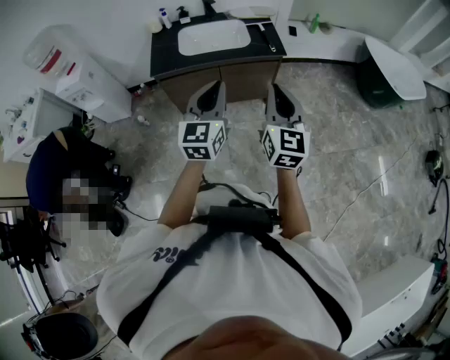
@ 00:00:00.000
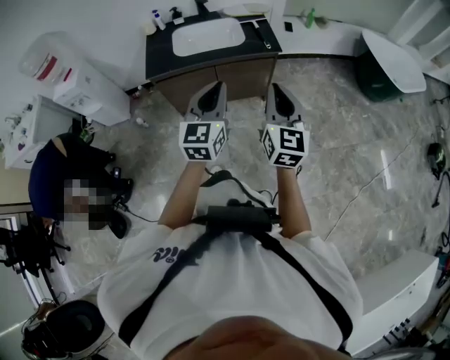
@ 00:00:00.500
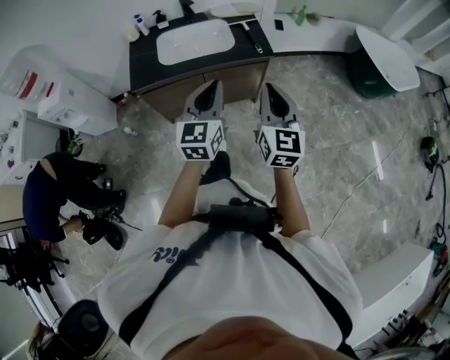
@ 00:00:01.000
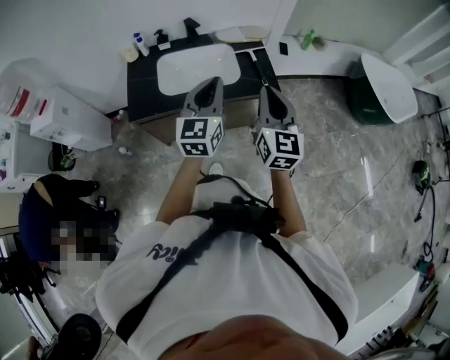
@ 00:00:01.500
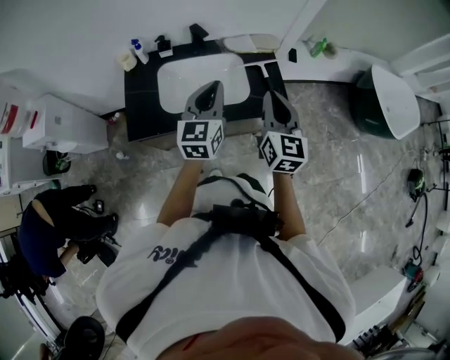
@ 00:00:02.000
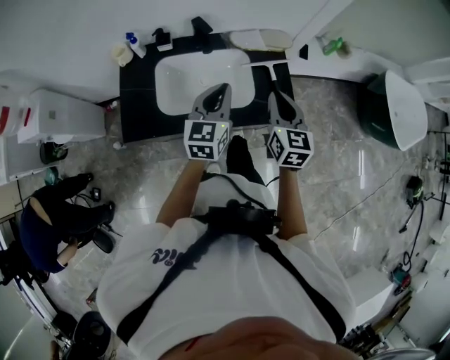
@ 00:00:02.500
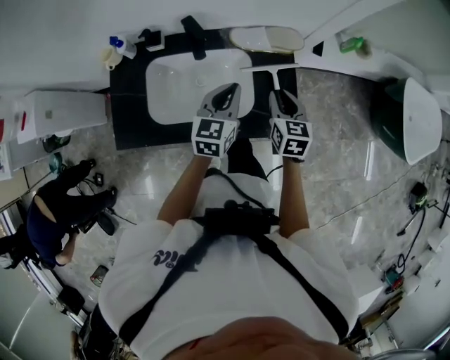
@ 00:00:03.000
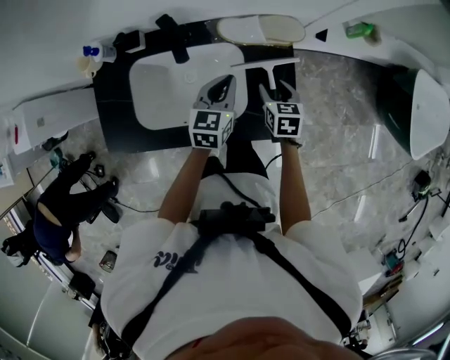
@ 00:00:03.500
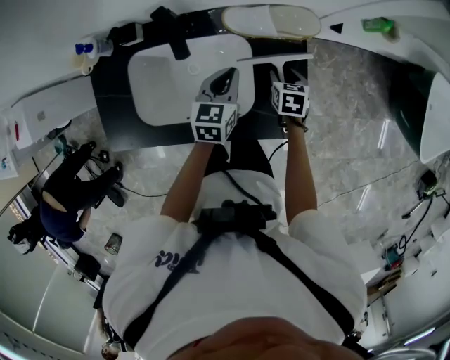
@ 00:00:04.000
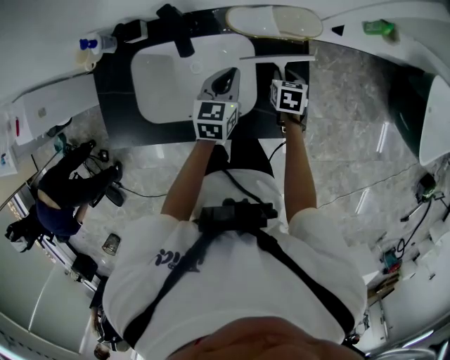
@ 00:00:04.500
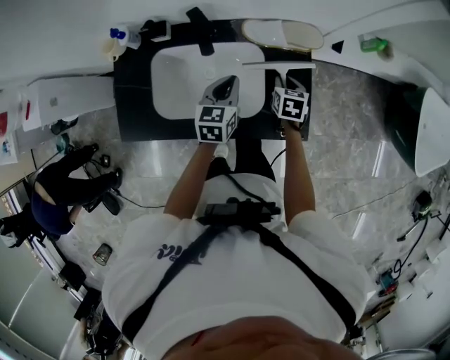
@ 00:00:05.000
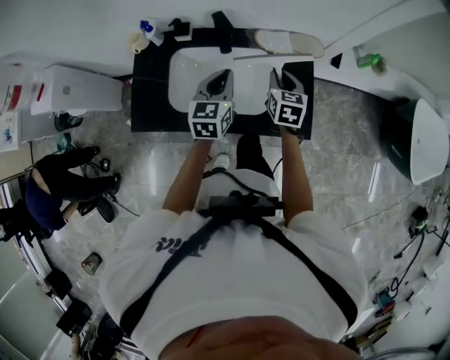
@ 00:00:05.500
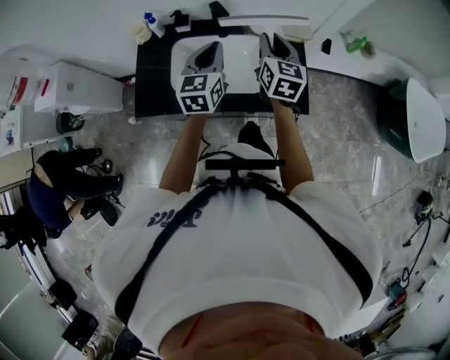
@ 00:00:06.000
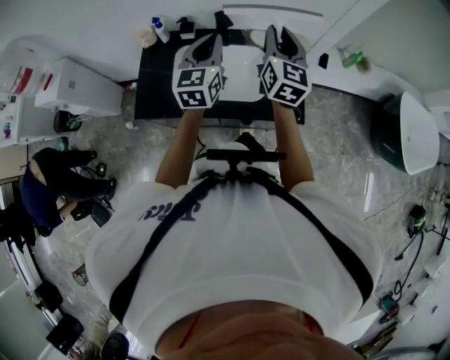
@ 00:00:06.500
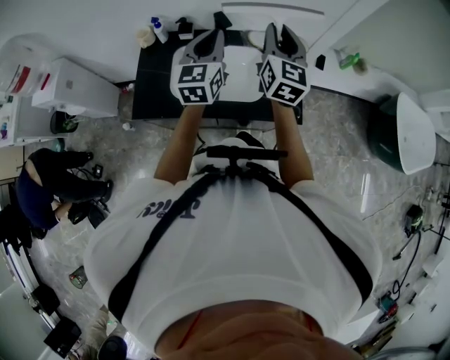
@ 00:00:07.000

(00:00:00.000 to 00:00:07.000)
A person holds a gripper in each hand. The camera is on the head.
00:00:00.000 - 00:00:02.000: The two grippers travel together, forward, approximately 40 cm.
00:00:02.000 - 00:00:03.500: The right gripper goes approximately 40 cm downward and forward, angles its fingers downward, by approximately 40 degrees, and opens. The left gripper travels forward and downward by roughly 35 cm, and swivels some 30 degrees.
00:00:03.500 - 00:00:05.000: The right gripper travels downward and back again, some 10 cm each way, and closes up, while the left gripper moves some 5 cm.
00:00:05.000 - 00:00:07.000: The left gripper shifts some 25 cm upward, and changes its angle by some 30 degrees; the right gripper moves upward, approximately 40 cm, and angles its fingers upward, by approximately 50 degrees.

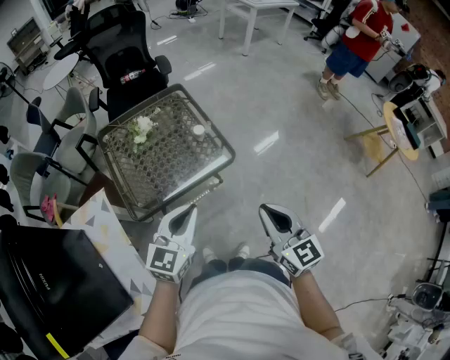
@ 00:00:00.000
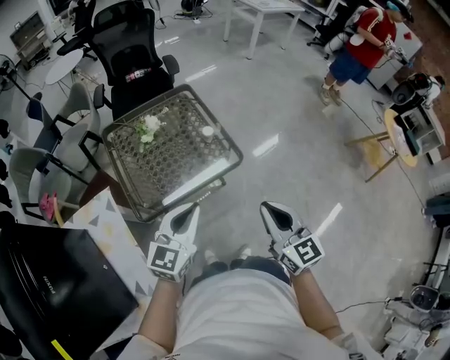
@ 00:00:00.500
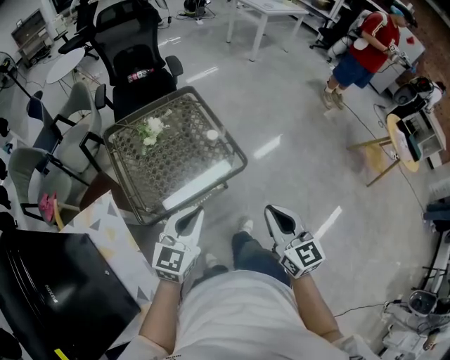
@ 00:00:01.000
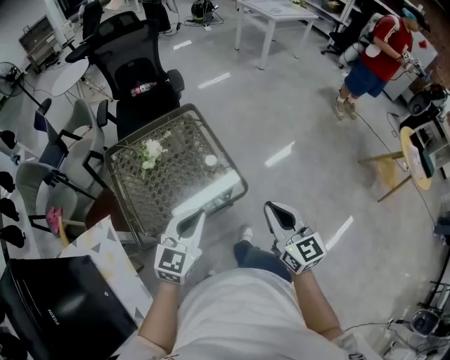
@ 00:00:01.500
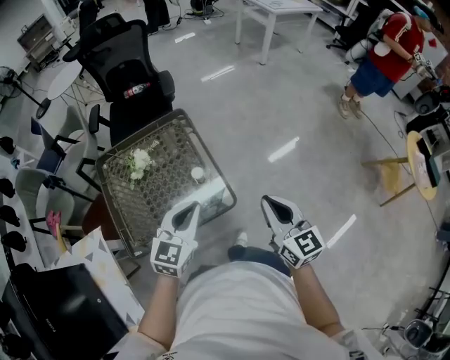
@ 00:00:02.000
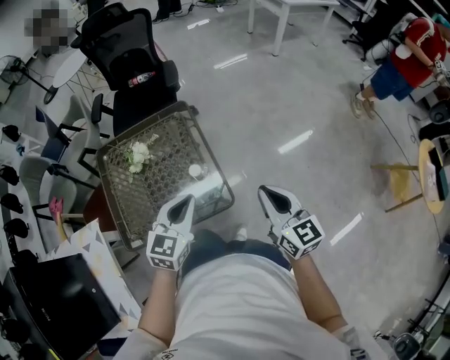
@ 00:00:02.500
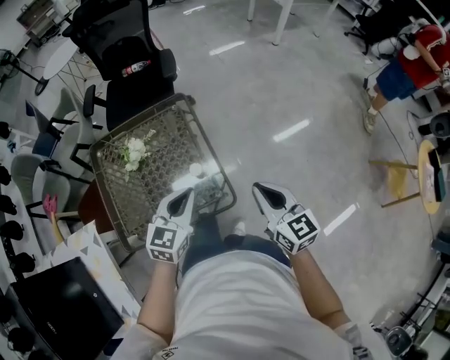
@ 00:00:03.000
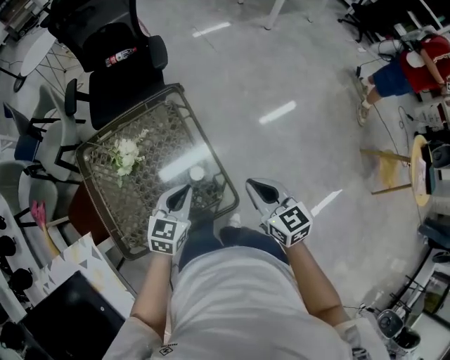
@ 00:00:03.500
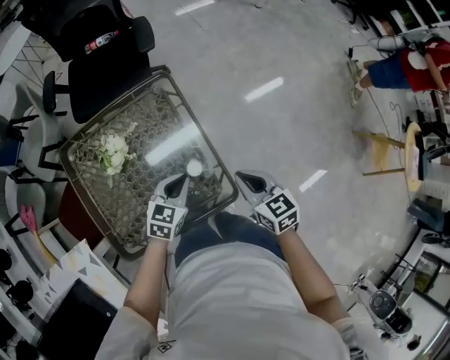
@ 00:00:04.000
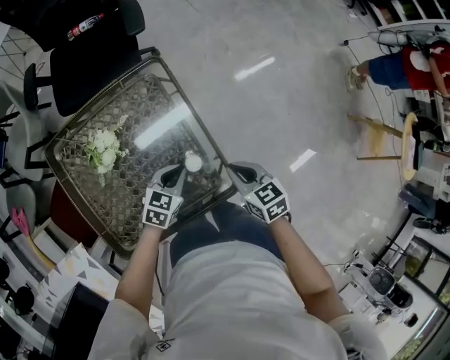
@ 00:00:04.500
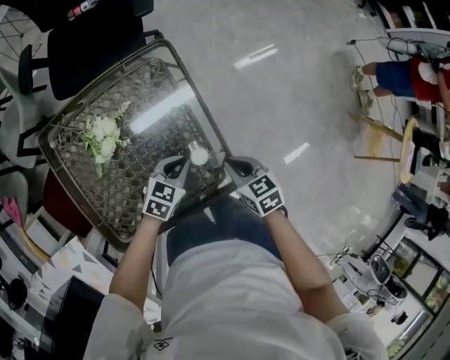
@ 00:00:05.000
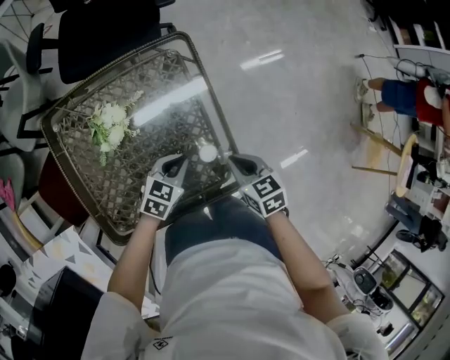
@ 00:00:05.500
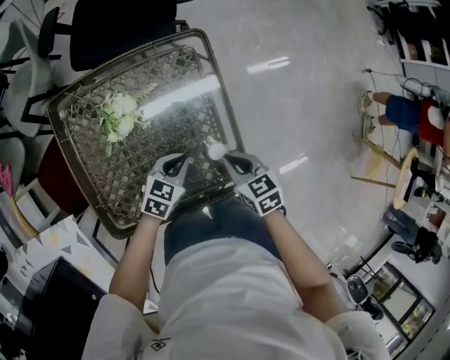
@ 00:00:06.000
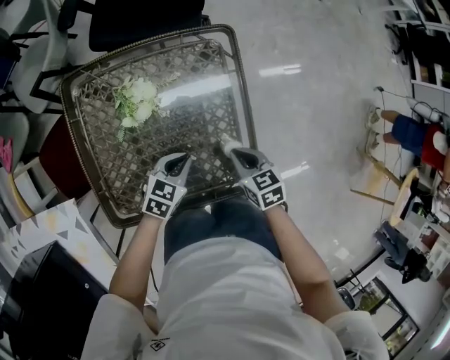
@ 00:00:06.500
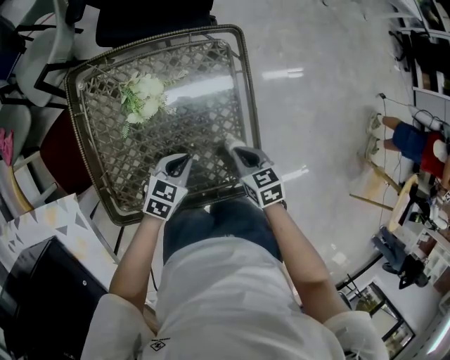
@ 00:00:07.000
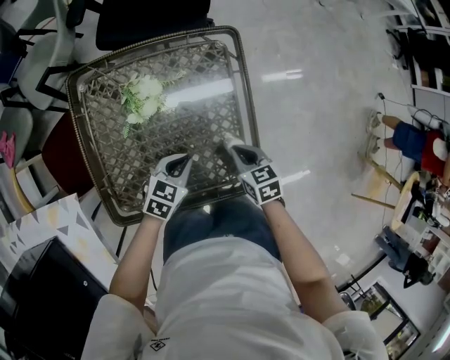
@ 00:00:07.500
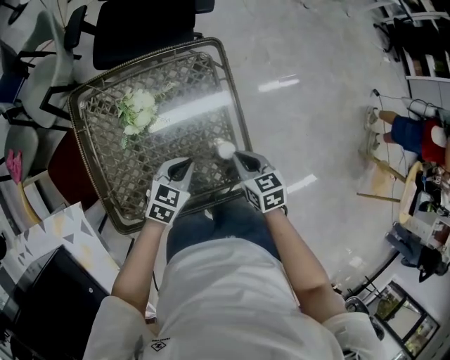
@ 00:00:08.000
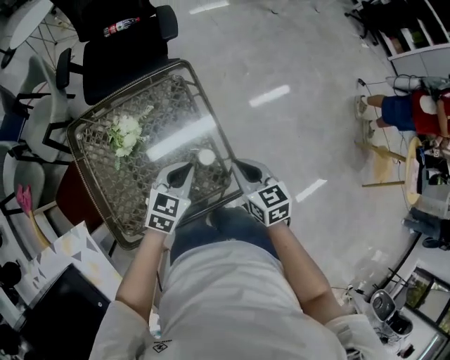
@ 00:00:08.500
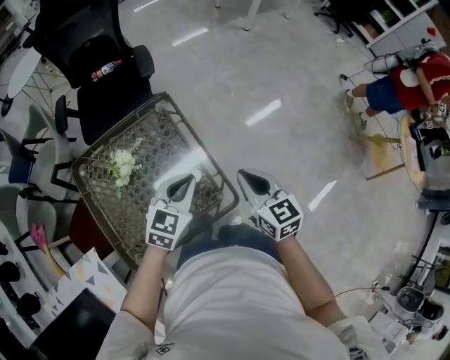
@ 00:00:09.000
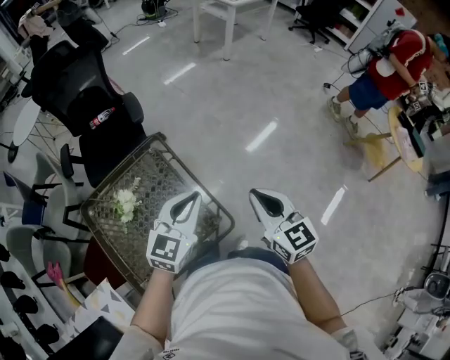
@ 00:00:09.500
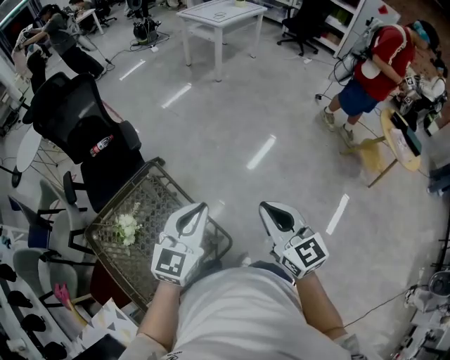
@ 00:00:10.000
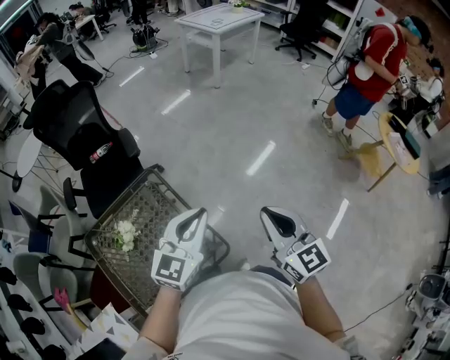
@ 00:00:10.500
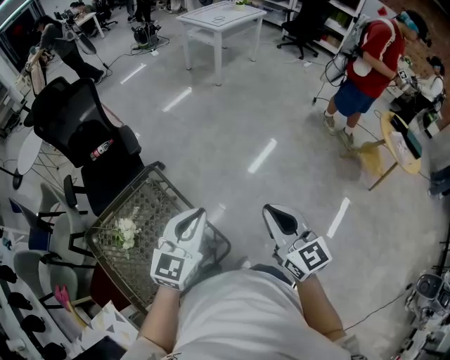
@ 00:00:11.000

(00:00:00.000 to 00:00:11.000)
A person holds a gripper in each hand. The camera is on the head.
00:00:00.000 - 00:00:02.000: The grippers both shift forward by roughly 25 cm.
00:00:02.000 - 00:00:03.500: The grippers both shift forward and downward by approximately 20 cm.
00:00:03.500 - 00:00:05.500: The right gripper goes roughly 20 cm downward and to the left, and turns by about 30 degrees. The left gripper heads downward, covering approximately 15 cm.
00:00:05.500 - 00:00:07.500: The two grippers go roughly 5 cm to the left.
00:00:07.500 - 00:00:09.000: Both grippers travel together upward and to the right, some 25 cm. The right gripper rotates about 40 degrees, while the left gripper turns by some 30 degrees.
00:00:09.000 - 00:00:11.000: The grippers both shift upward and to the right by about 20 cm. The left gripper swivels roughly 20 degrees; the right gripper rotates approximately 20 degrees.

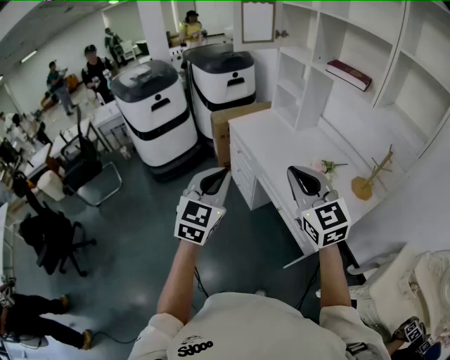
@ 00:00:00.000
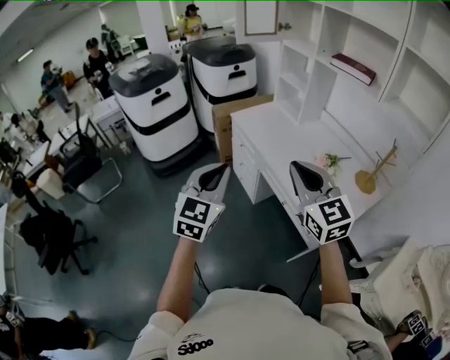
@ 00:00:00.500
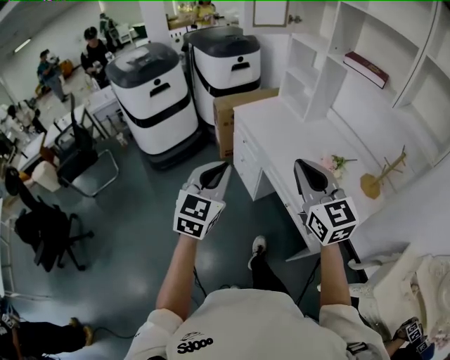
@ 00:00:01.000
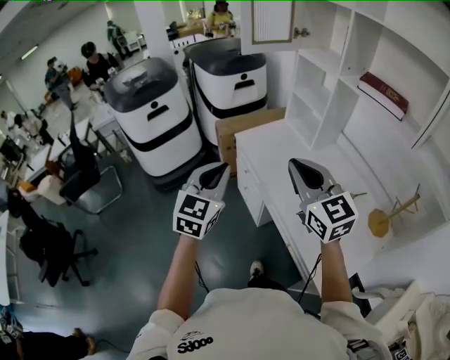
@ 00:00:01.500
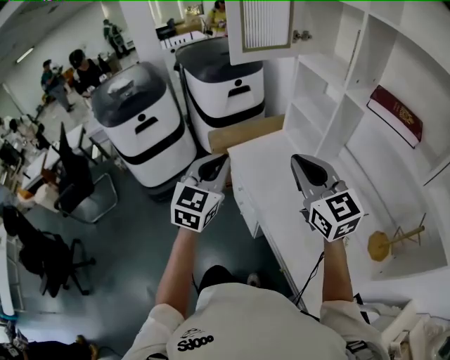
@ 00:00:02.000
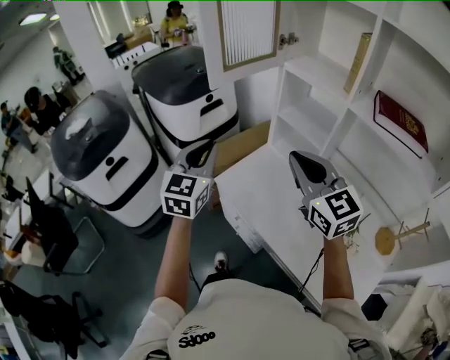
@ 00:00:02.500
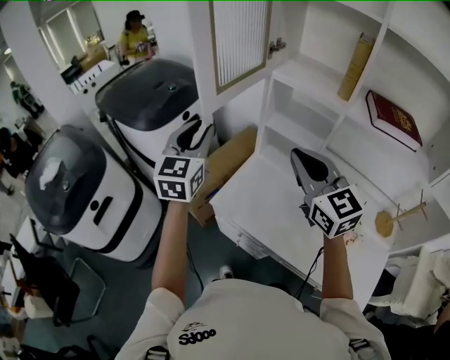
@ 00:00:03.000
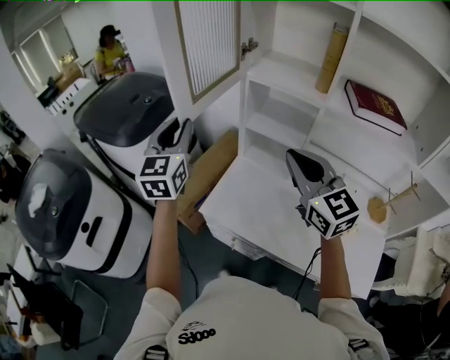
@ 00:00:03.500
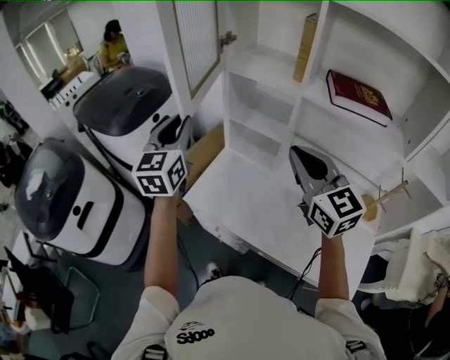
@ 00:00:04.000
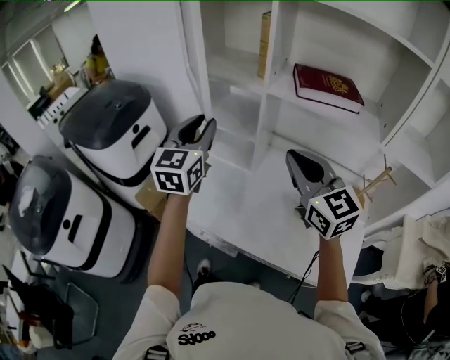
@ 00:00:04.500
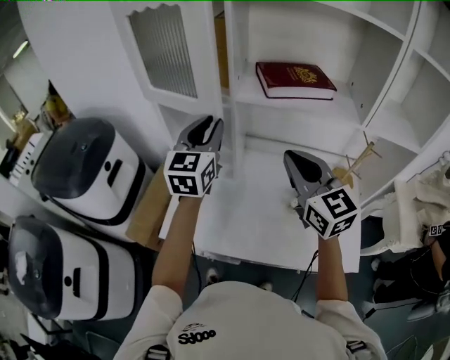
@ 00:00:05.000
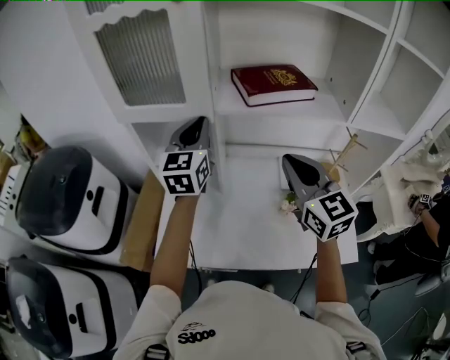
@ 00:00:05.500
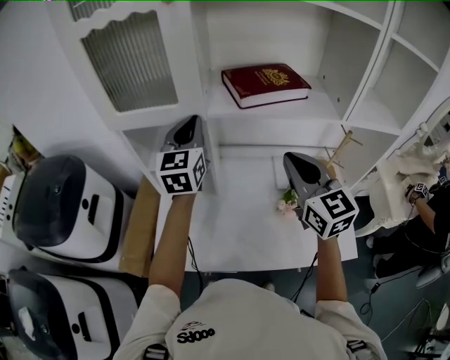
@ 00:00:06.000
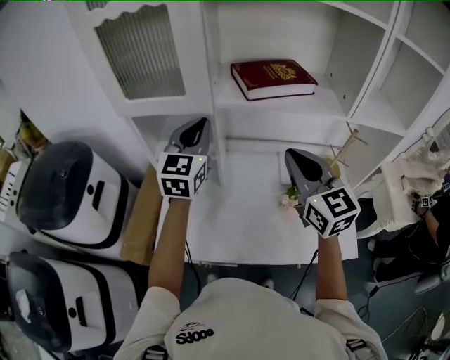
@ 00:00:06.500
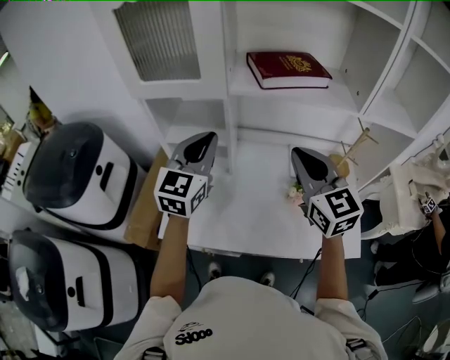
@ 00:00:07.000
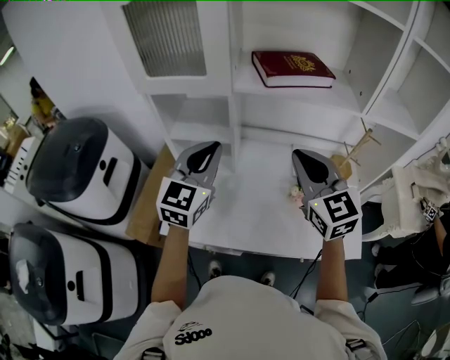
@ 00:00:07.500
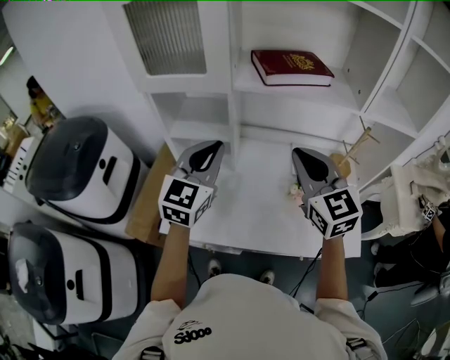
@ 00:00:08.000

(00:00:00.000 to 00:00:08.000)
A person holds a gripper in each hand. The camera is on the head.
00:00:00.000 - 00:00:02.000: Both grippers travel together forward, about 40 cm.
00:00:02.000 - 00:00:04.000: The left gripper shifts by some 30 cm, and turns by roughly 20 degrees; the right gripper ends up about 15 cm from where it was, and swivels about 30 degrees.
00:00:04.000 - 00:00:06.000: The left gripper changes place by roughly 30 cm, and changes its angle by about 30 degrees; the right gripper moves some 15 cm, and changes its angle by approximately 30 degrees.
00:00:06.000 - 00:00:08.000: The right gripper heads backward, covering approximately 5 cm. The left gripper moves backward, approximately 15 cm.
